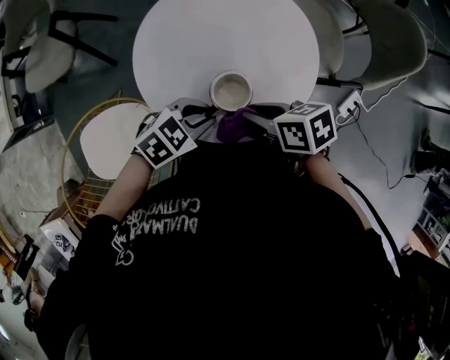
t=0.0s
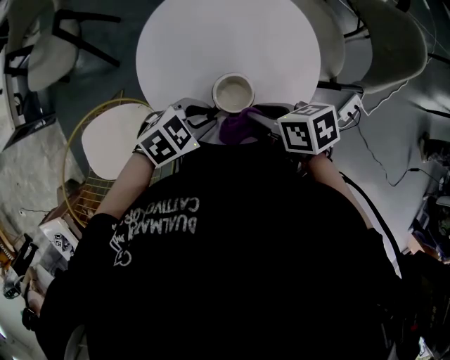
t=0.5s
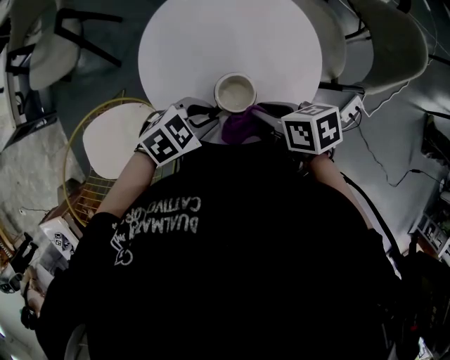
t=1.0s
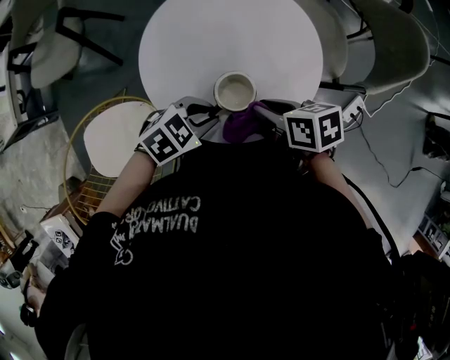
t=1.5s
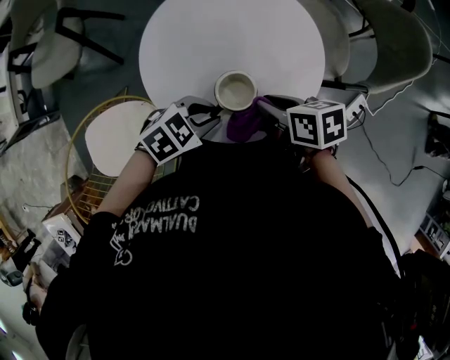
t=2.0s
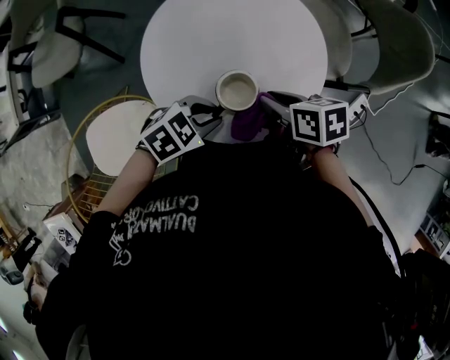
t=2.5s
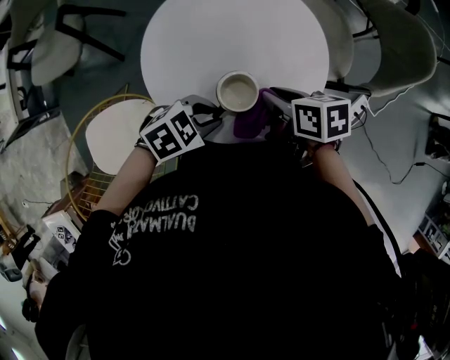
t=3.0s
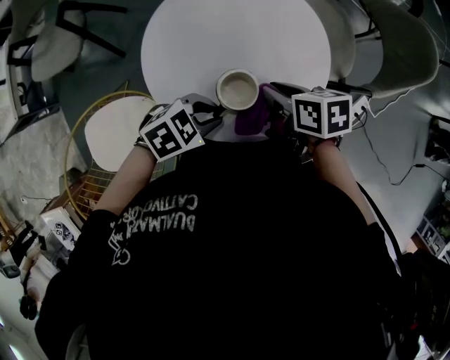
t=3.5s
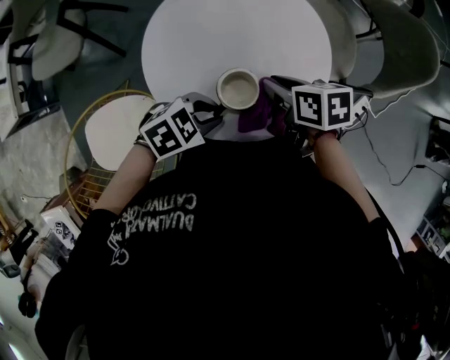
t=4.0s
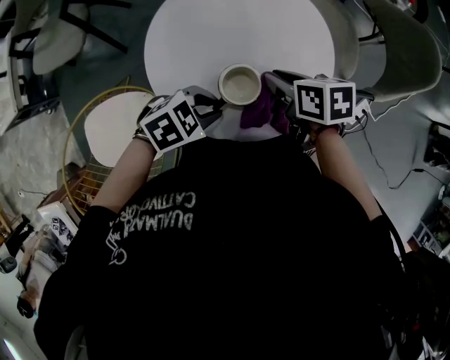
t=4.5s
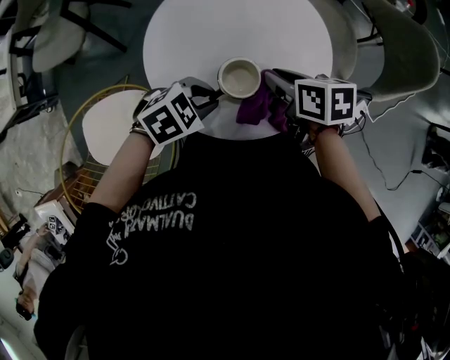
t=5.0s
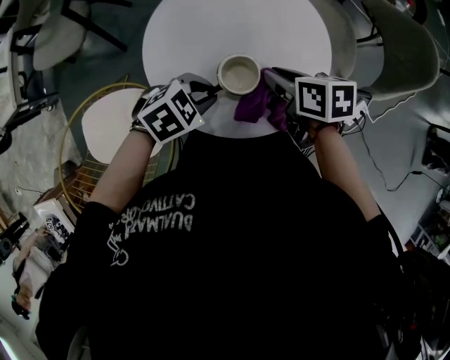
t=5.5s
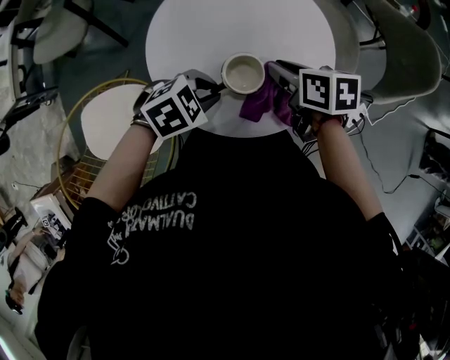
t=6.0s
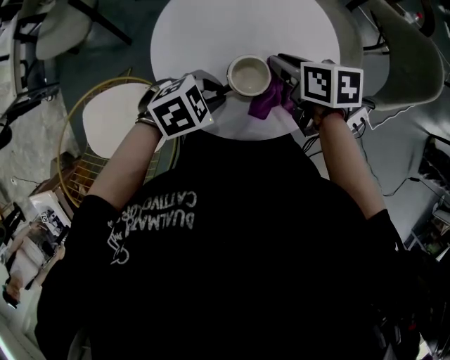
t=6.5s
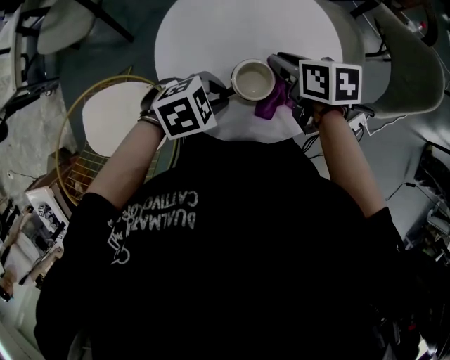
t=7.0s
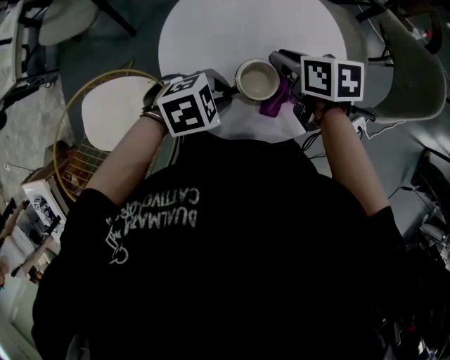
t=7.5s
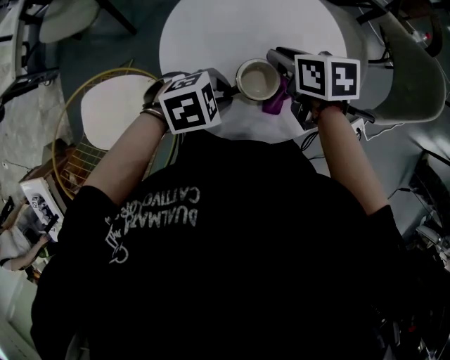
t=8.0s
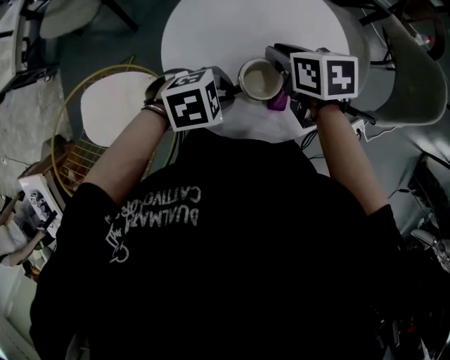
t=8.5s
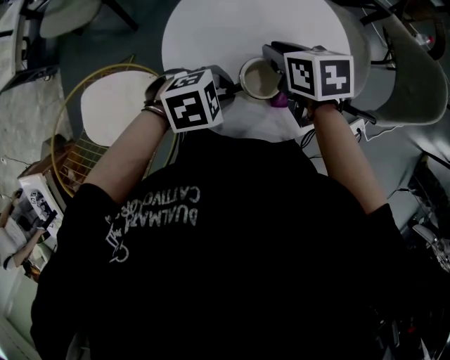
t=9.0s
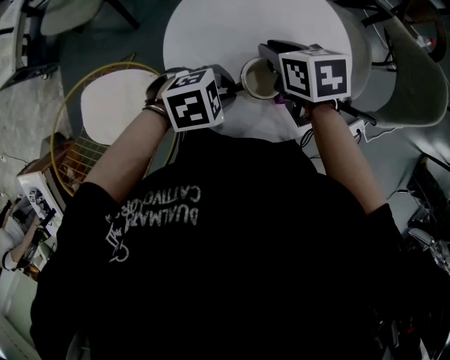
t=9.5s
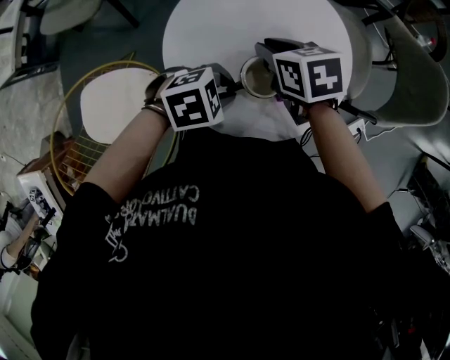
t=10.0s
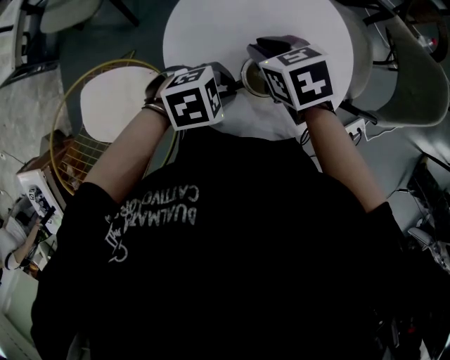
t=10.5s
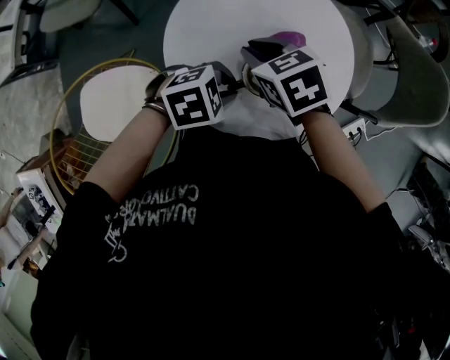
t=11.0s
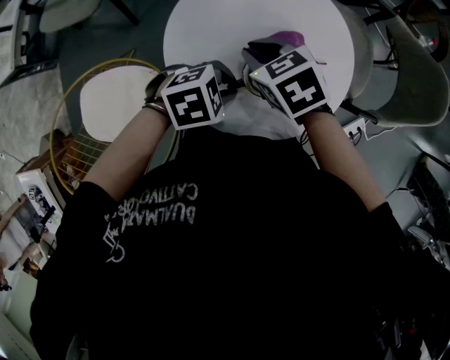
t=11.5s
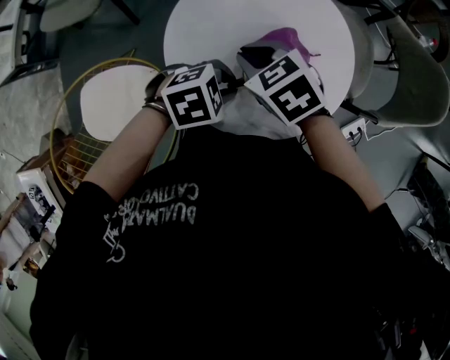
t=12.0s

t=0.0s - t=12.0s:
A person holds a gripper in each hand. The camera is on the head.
t=0.0s - t=2.0s: The grippers make only small movements.
t=2.0s - t=4.0s: The right gripper moves approximately 5 cm.
t=4.0s - t=6.0s: The grippers move only a little.
t=6.0s - t=8.0s: The right gripper changes place by some 5 cm.
t=8.0s - t=10.0s: There are only small adjustments of the grippers.
t=10.0s - t=12.0s: The right gripper moves about 5 cm, and changes its angle by roughly 30 degrees.

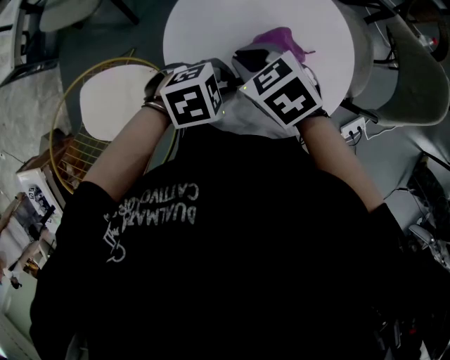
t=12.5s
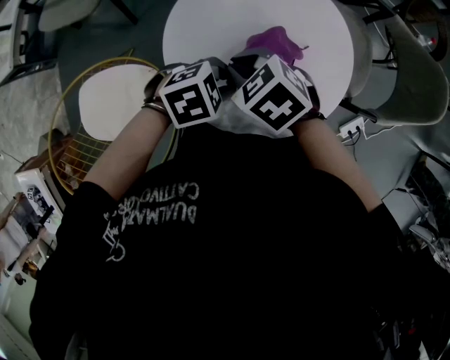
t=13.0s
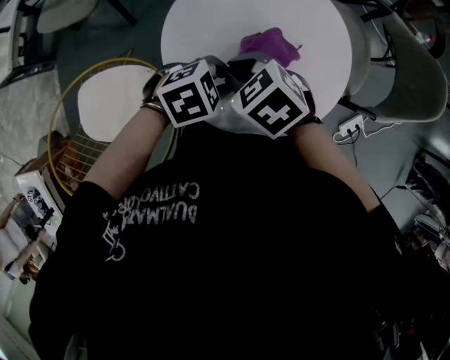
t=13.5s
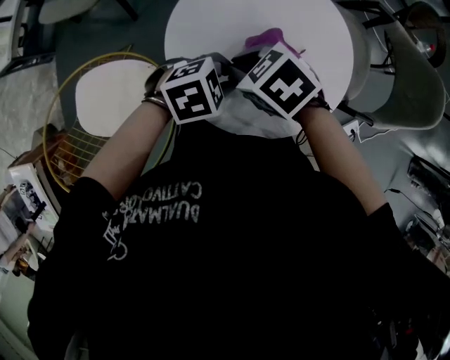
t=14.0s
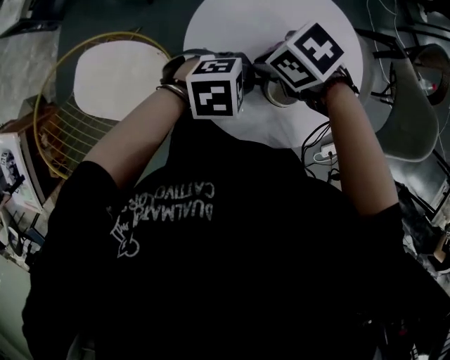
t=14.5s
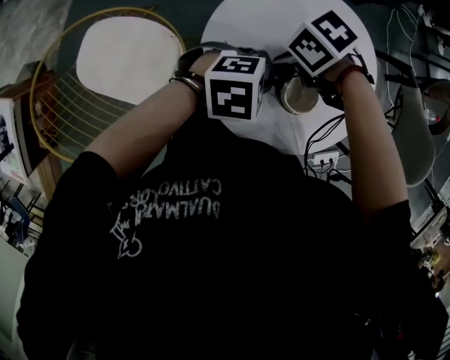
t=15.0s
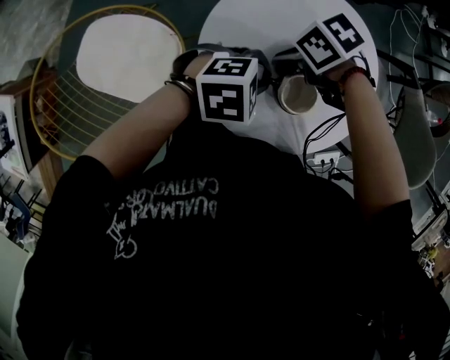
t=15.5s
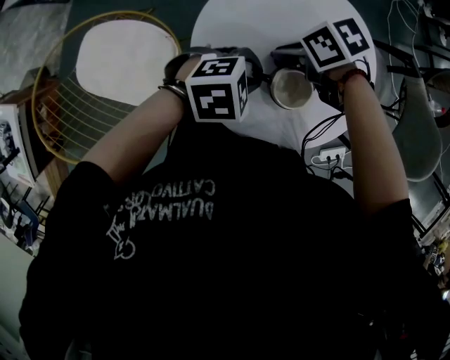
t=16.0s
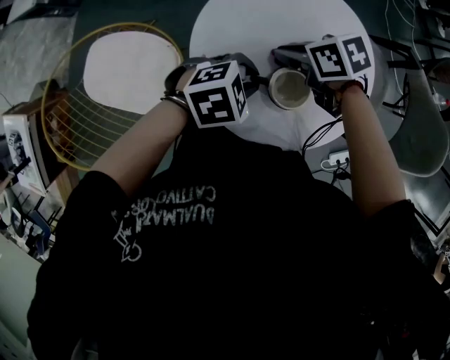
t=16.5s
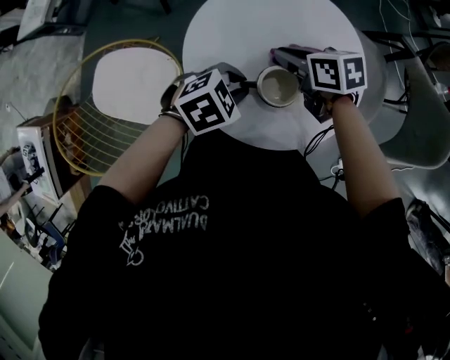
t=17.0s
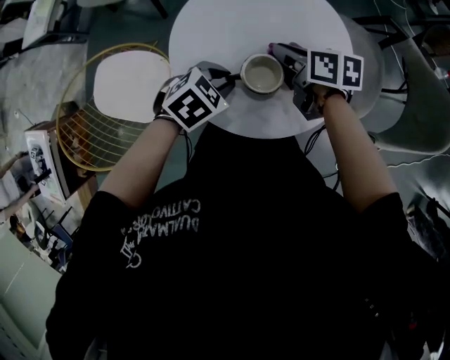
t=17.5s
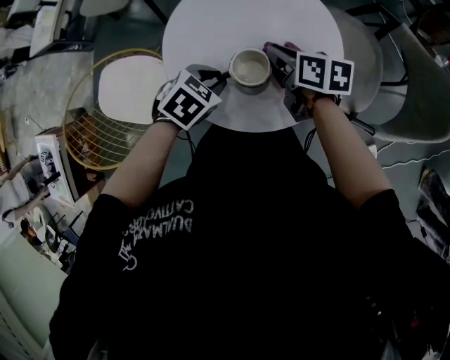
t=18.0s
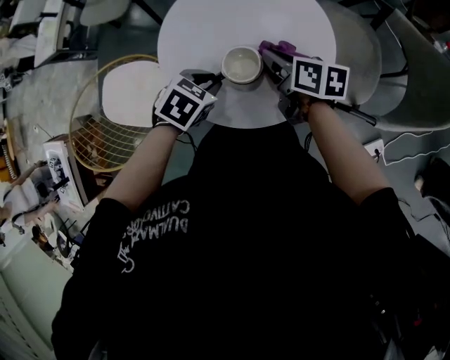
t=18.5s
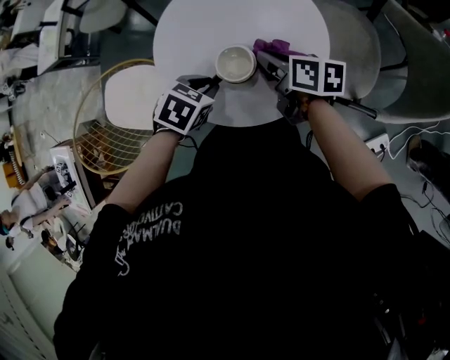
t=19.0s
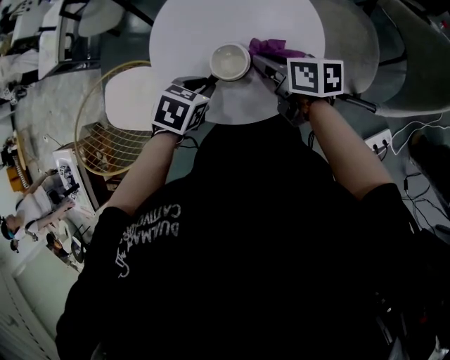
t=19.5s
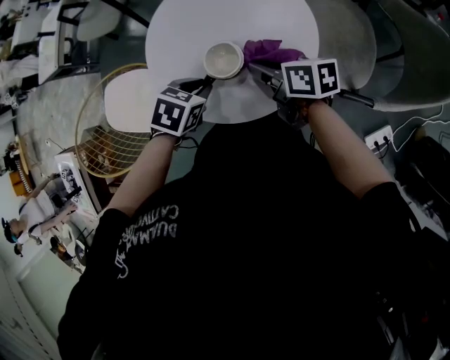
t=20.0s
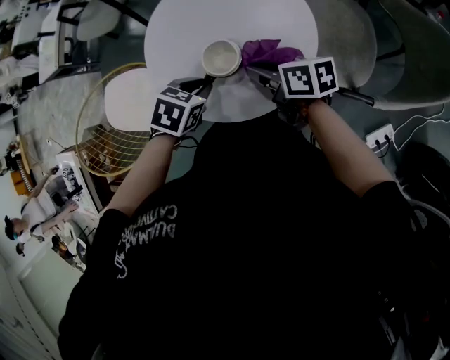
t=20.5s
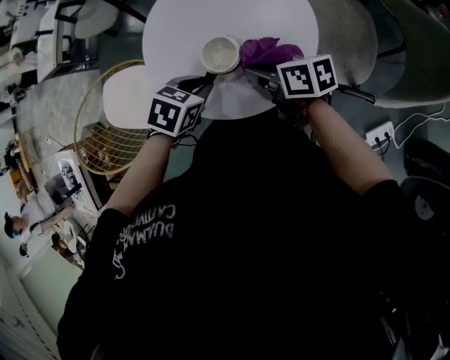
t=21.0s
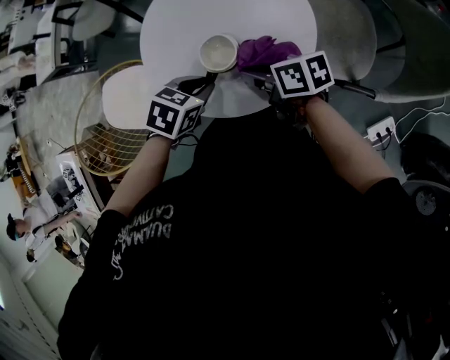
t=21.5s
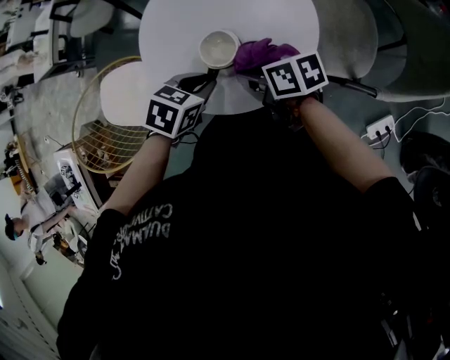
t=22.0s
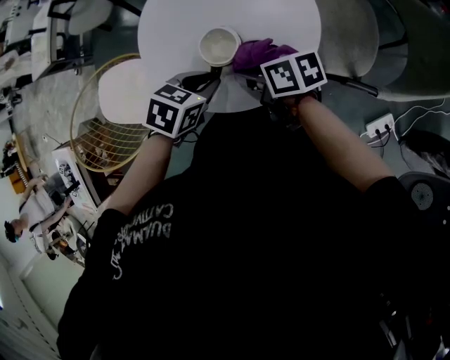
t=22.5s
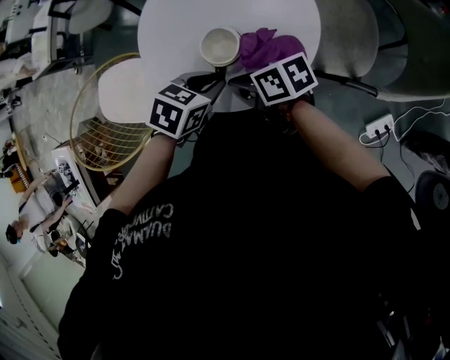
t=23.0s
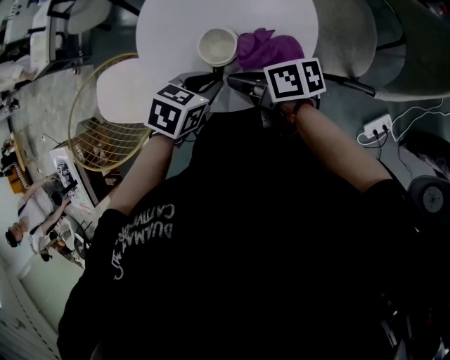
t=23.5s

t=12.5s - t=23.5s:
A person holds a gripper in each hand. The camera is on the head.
t=12.5s - t=14.5s: The right gripper changes its angle by approximately 30 degrees.
t=14.5s - t=16.0s: The right gripper shifts by roughly 5 cm.
t=16.0s - t=18.0s: The right gripper ends up about 15 cm from where it was, and changes its angle by some 50 degrees; the left gripper rotates some 30 degrees.
t=18.0s - t=20.0s: The right gripper shifts roughly 10 cm backward.
t=20.0s - t=21.5s: The grippers stay close to where they were, moving slightly.
t=21.5s - t=23.5s: The grippers make only small movements.

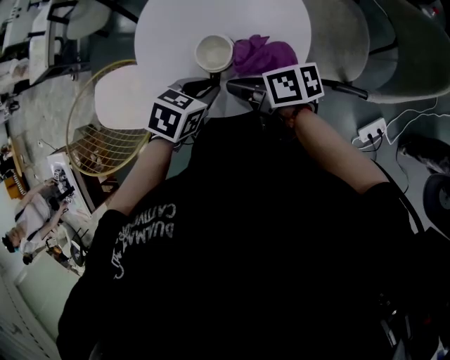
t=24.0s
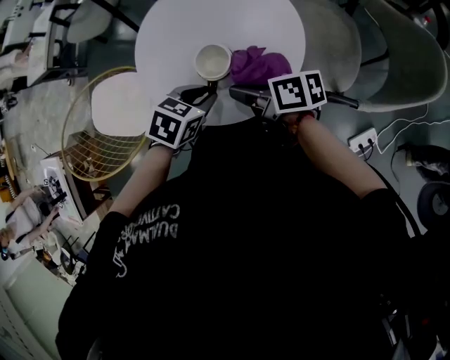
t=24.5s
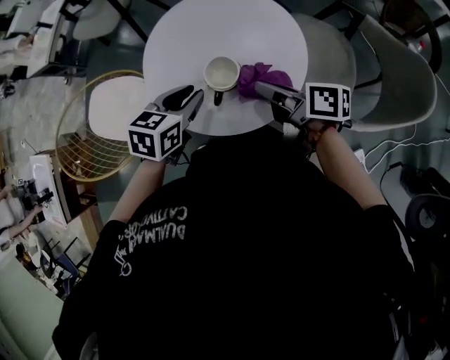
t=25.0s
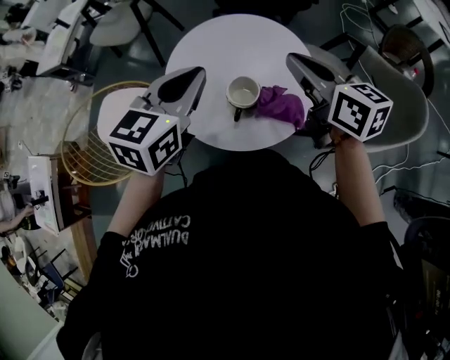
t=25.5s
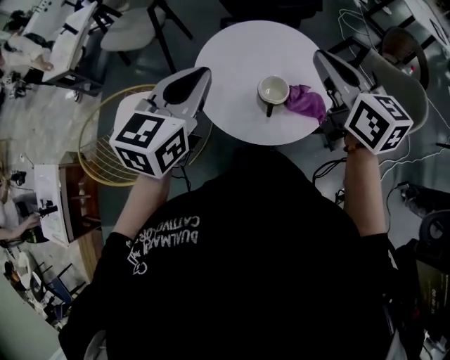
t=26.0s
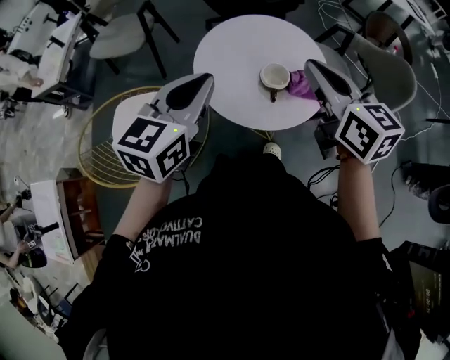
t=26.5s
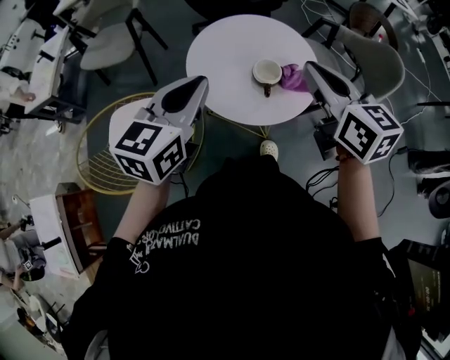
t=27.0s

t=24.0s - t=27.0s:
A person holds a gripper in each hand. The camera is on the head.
t=24.0s - t=25.5s: The grippers both shift upward by some 20 cm. The left gripper points its fingers some 40 degrees further upward, while the right gripper swivels some 50 degrees.
t=25.5s - t=27.0s: The left gripper goes roughly 20 cm to the left and backward. The right gripper is displaced backward, to the left and upward by some 25 cm, and swivels some 30 degrees.

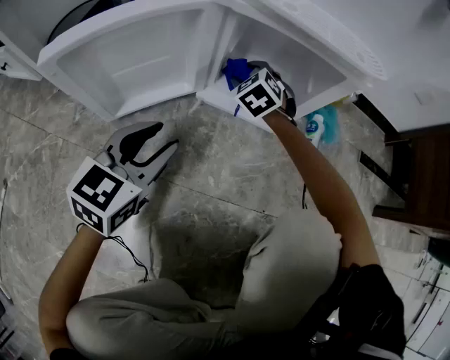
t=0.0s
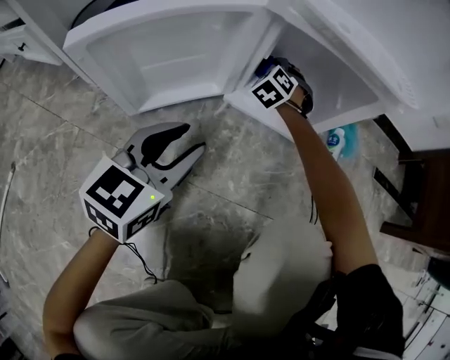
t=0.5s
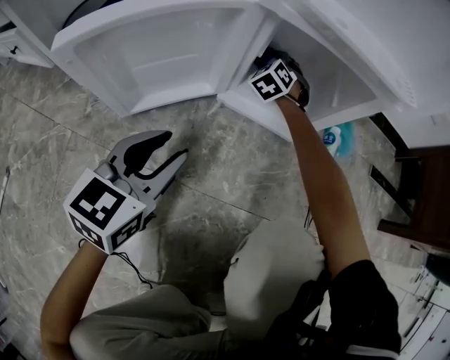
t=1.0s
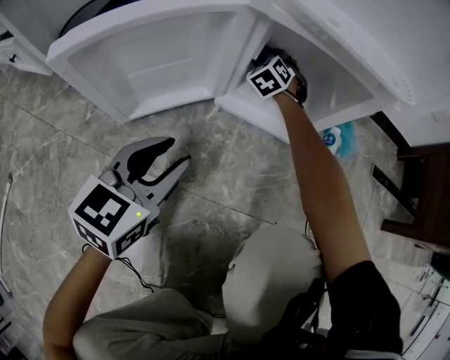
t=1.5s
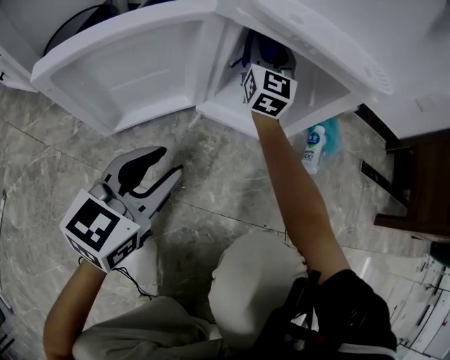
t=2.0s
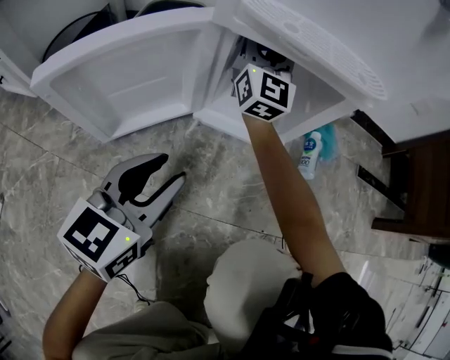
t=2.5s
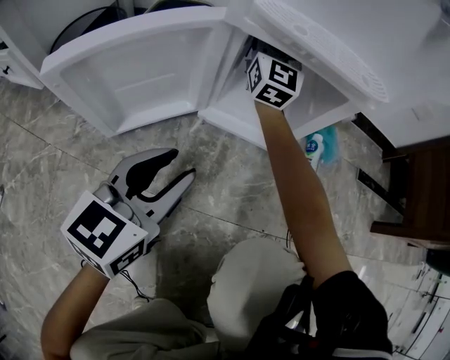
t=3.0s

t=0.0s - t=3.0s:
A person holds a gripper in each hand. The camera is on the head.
t=0.0s - t=1.5s: The right gripper goes roughly 10 cm forward.
t=1.5s - t=3.0s: The right gripper travels upward by some 25 cm, and angles its fingers upward, by approximately 60 degrees. Meanwhile the left gripper changes place by roughly 5 cm.
